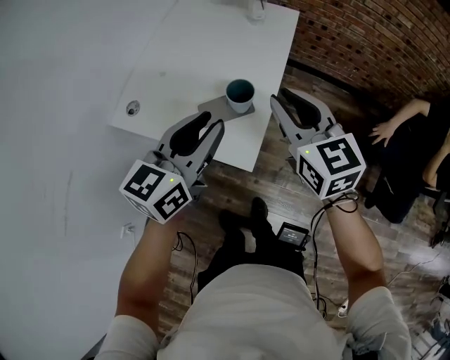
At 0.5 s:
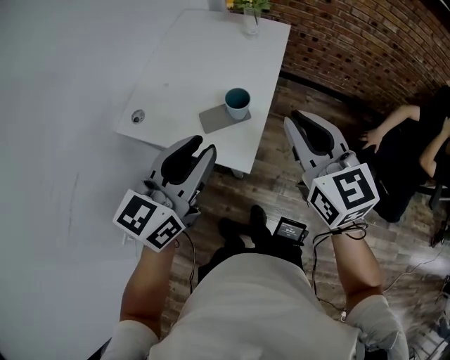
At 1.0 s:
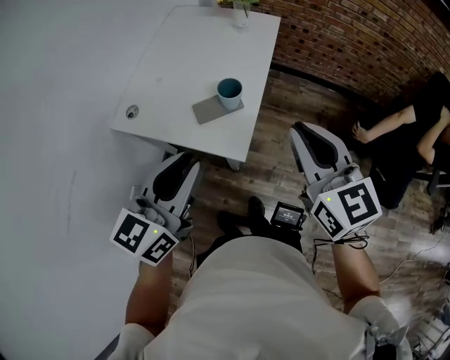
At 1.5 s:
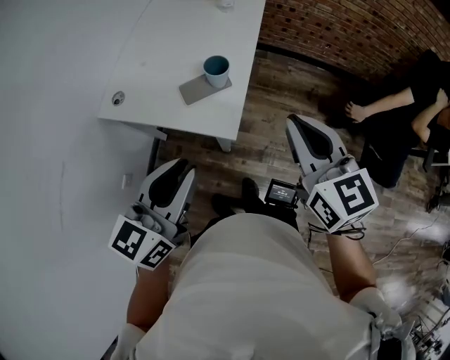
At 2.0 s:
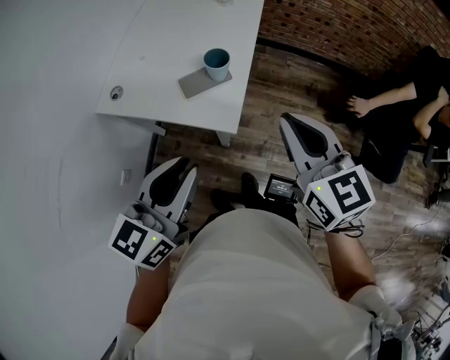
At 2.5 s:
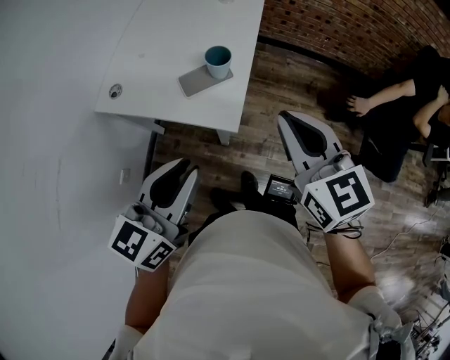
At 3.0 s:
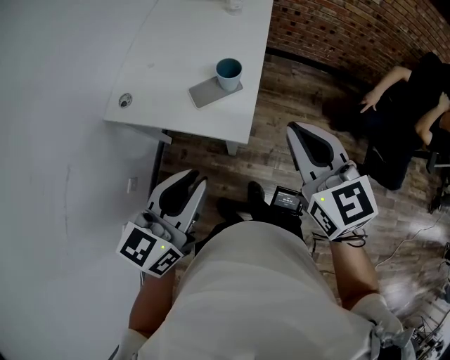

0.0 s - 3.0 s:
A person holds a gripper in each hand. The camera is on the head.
0.0 s - 1.5 s: The grippers both shift backward by some 15 cm.
1.5 s - 3.0 s: The grippers stay close to where they were, moving slightly.

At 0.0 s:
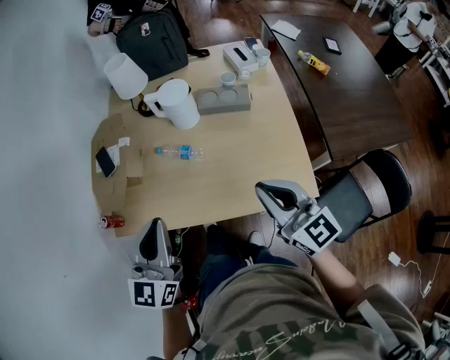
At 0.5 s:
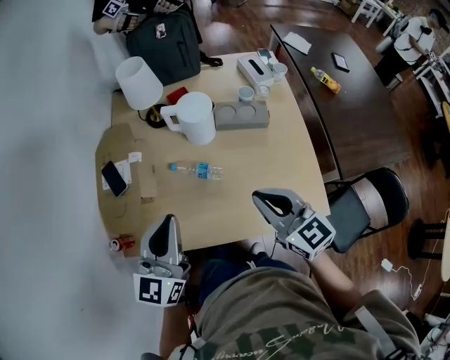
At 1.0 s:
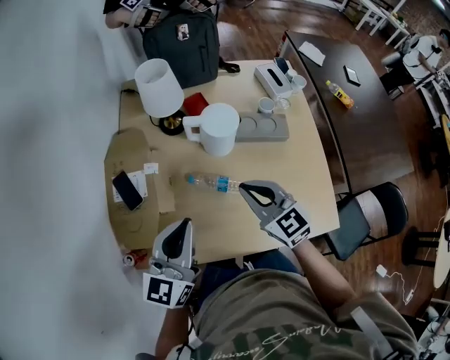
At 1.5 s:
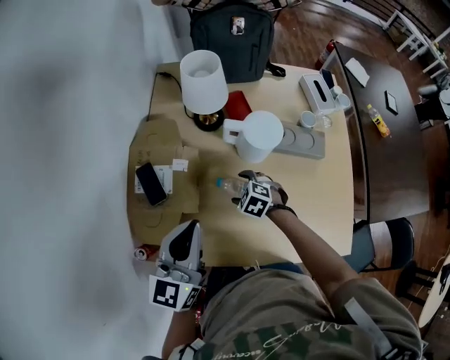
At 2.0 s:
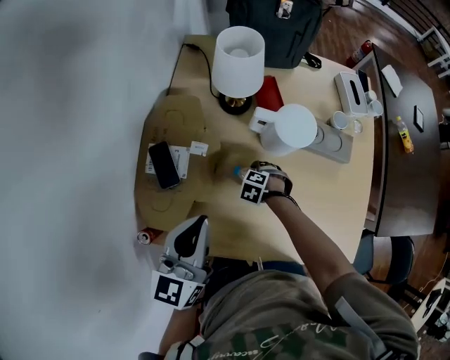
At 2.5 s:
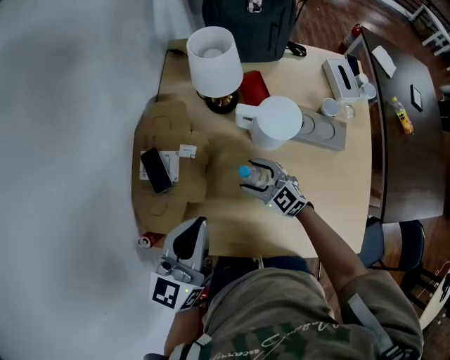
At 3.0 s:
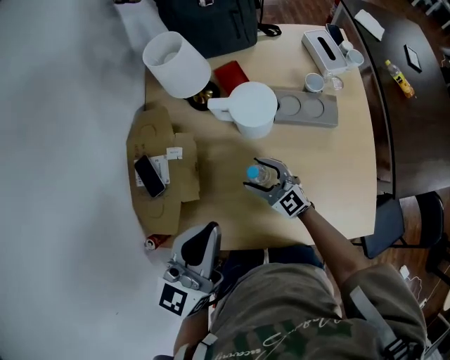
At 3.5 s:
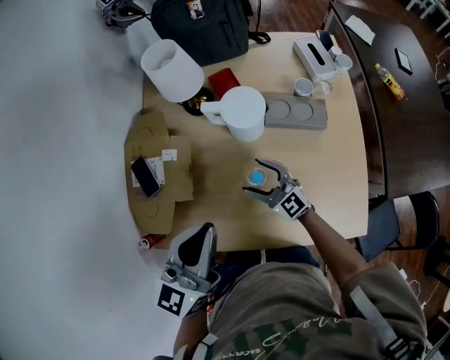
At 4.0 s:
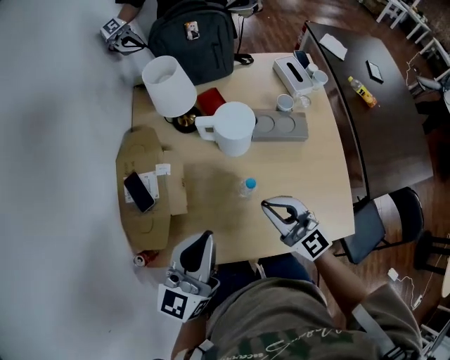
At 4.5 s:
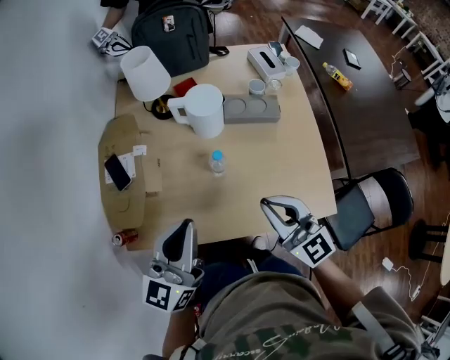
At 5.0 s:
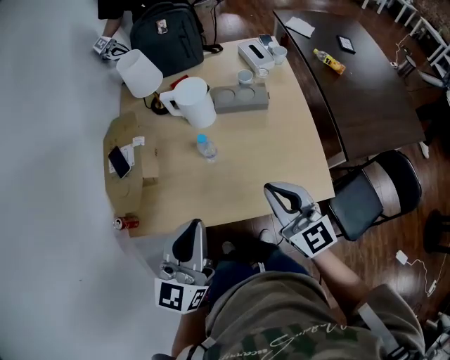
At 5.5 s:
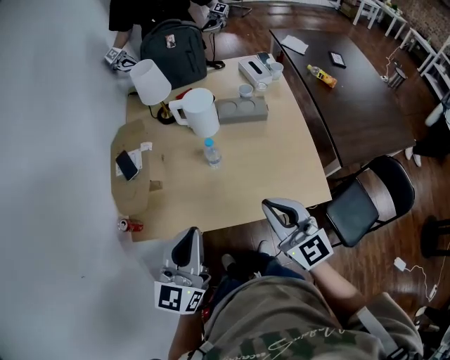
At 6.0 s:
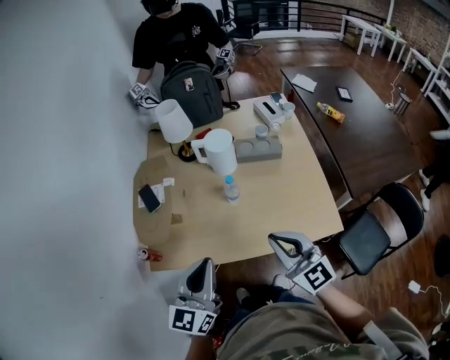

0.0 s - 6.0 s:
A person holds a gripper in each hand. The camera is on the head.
0.0 s - 2.0 s: The left gripper shifts by approximately 30 cm. The right gripper goes roughly 40 cm downward, tilts its fingers roughly 80 degrees downward, and opens up.
2.0 s - 4.0 s: The right gripper shifts approximately 35 cm upward, points its fingers approximately 80 degrees further upward, and closes its fingers. The left gripper moves some 15 cm.
4.0 s - 6.0 s: The left gripper moves backward, about 20 cm. Meanwhile the right gripper goes about 25 cm backward and upward.

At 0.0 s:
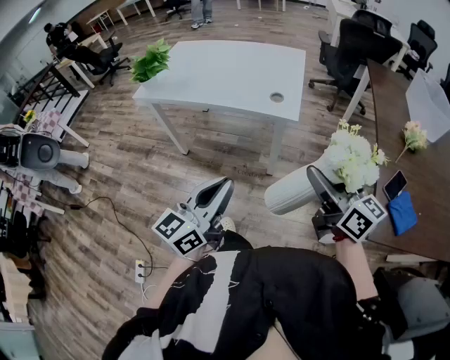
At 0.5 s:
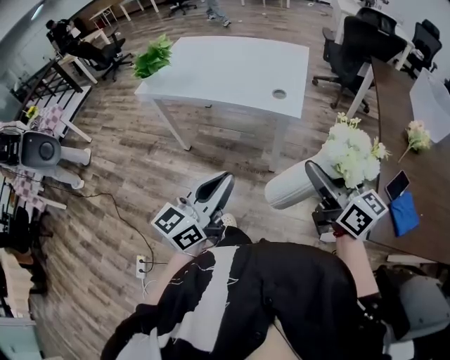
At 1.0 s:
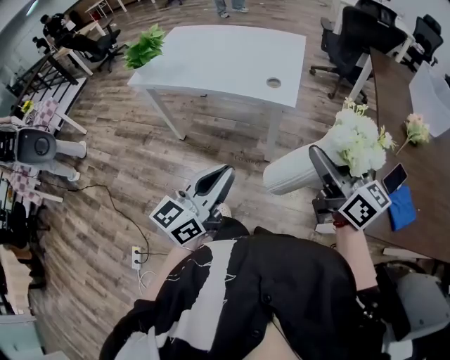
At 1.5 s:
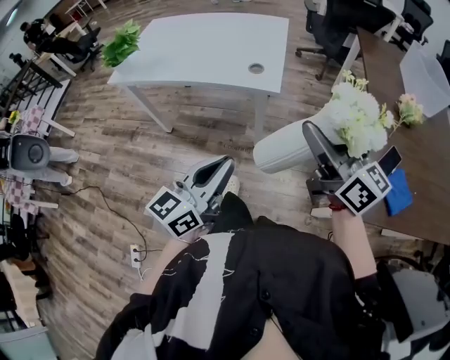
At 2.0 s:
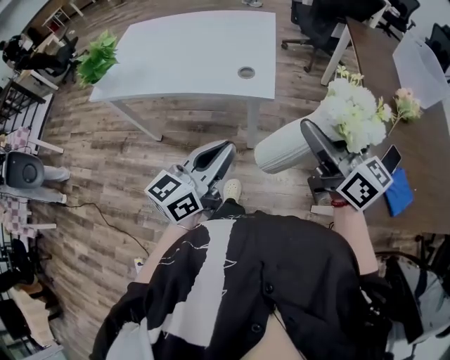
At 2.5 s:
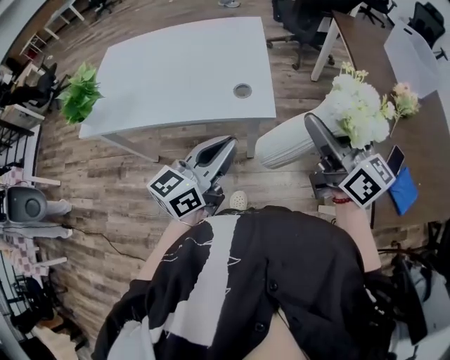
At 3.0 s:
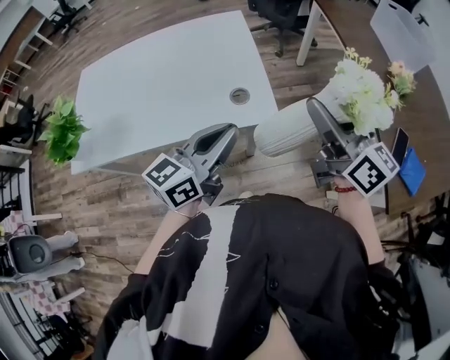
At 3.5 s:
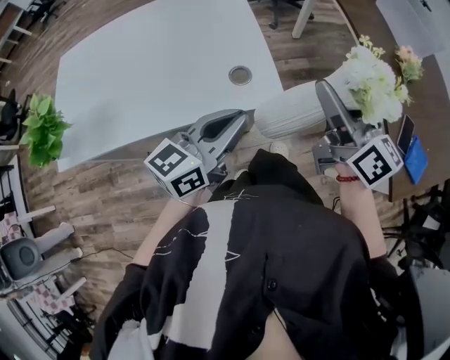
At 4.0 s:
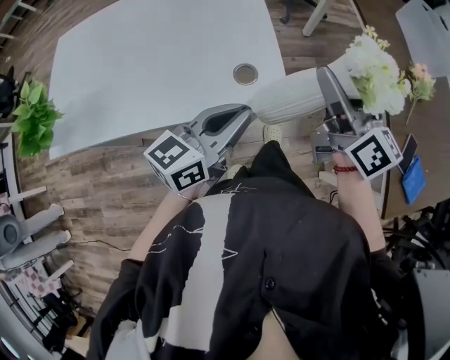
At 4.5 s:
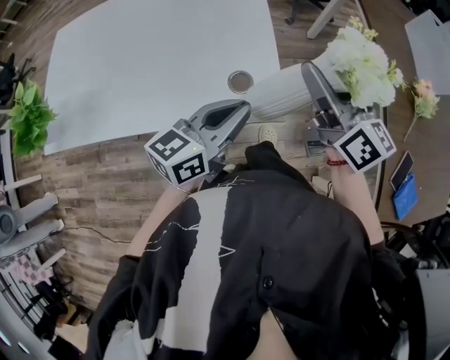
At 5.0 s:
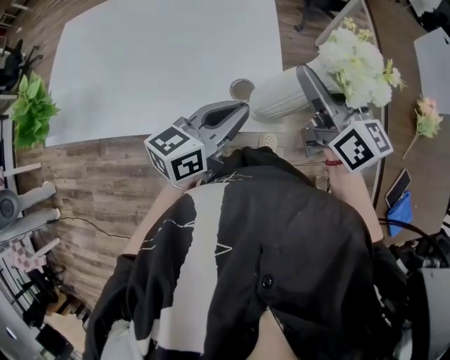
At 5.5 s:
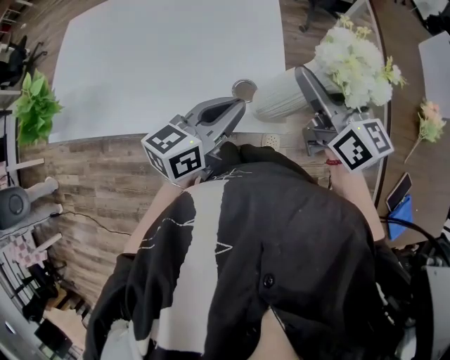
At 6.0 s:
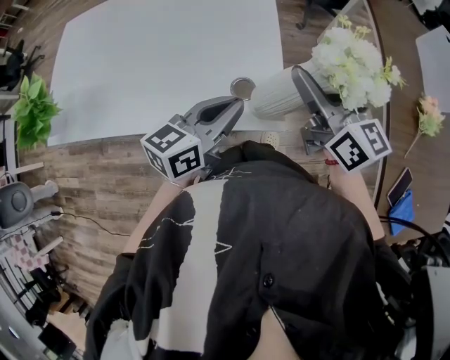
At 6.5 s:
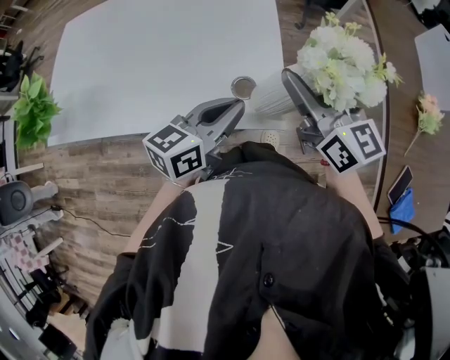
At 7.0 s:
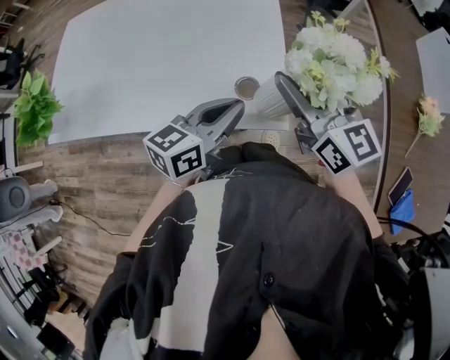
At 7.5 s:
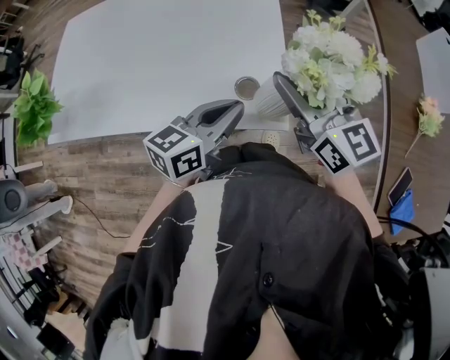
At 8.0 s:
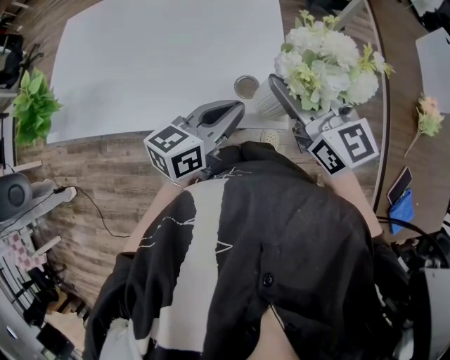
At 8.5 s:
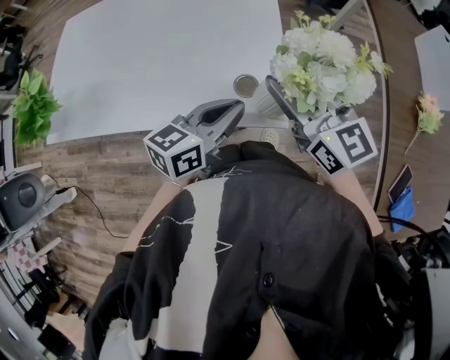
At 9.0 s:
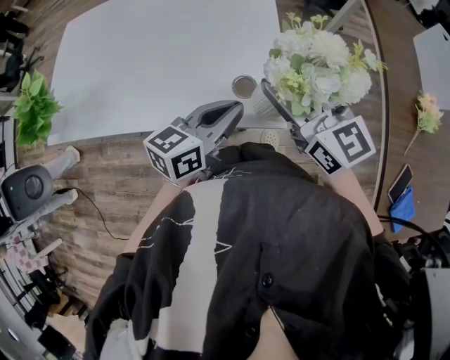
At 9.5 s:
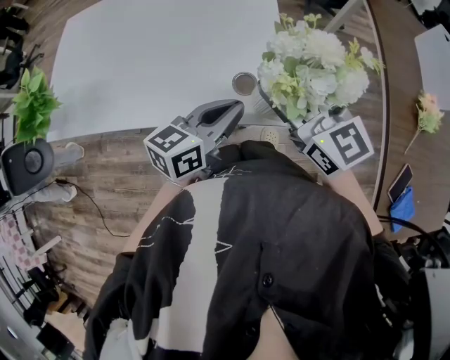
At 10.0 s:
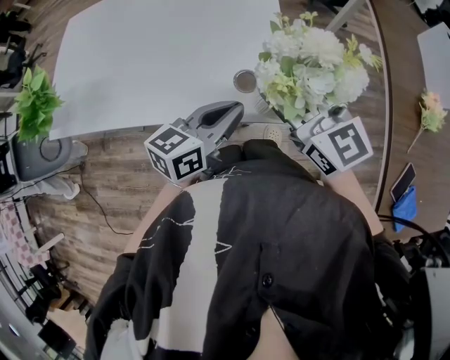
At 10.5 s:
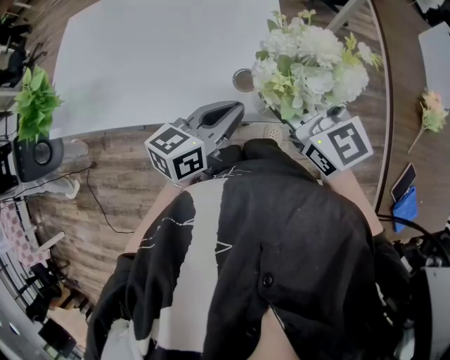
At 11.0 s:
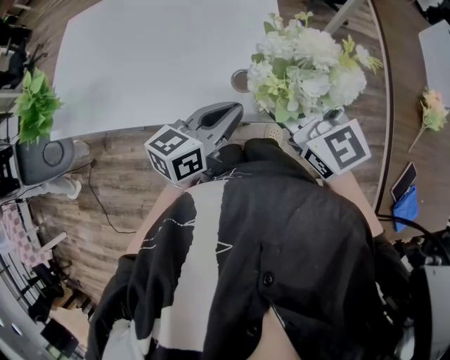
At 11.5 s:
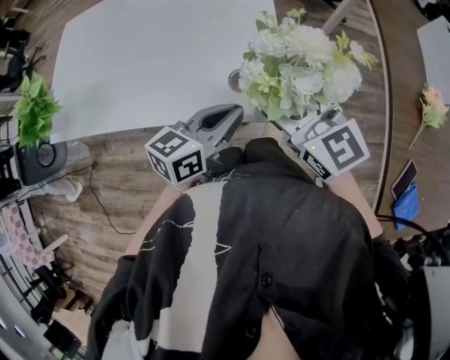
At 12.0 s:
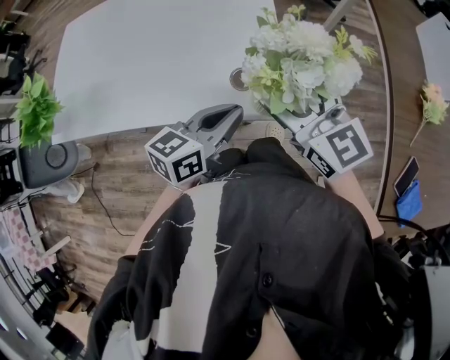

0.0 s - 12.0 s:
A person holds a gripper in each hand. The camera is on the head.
0.0 s - 2.0 s: The right gripper shifts about 10 cm forward. Meanwhile the left gripper heads forward and to the right, covering some 15 cm.
2.0 s - 4.0 s: The right gripper ends up approximately 25 cm from where it was, and turns by about 30 degrees. Meanwhile the left gripper moves approximately 25 cm, and rotates roughly 20 degrees.
4.0 s - 6.0 s: The grippers both shift forward by some 5 cm.
6.0 s - 8.0 s: The right gripper shifts by some 5 cm.
8.0 s - 12.0 s: The grippers move only a little.

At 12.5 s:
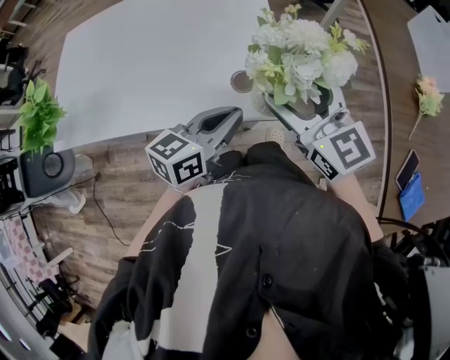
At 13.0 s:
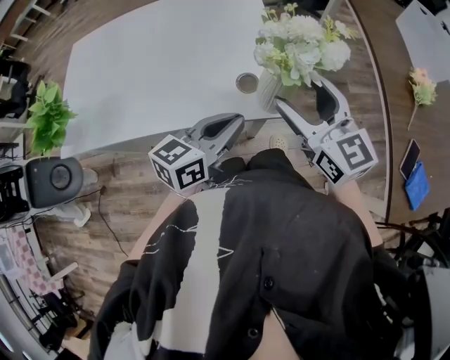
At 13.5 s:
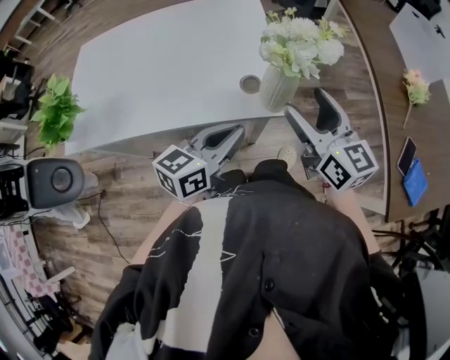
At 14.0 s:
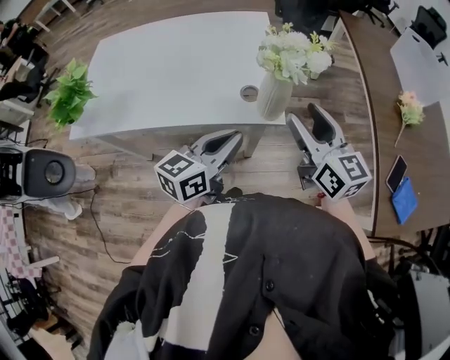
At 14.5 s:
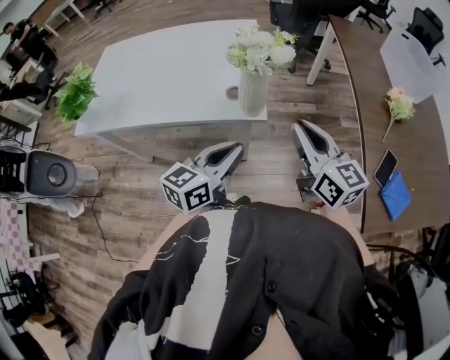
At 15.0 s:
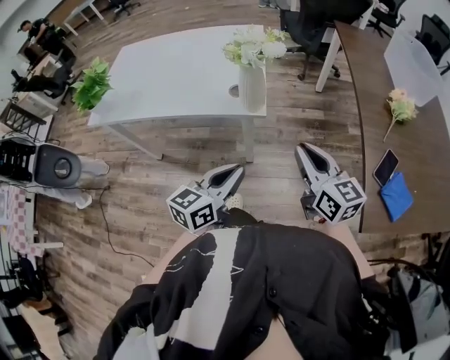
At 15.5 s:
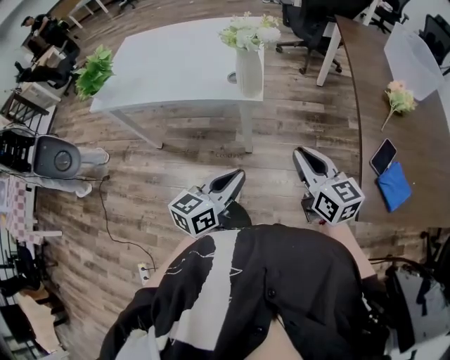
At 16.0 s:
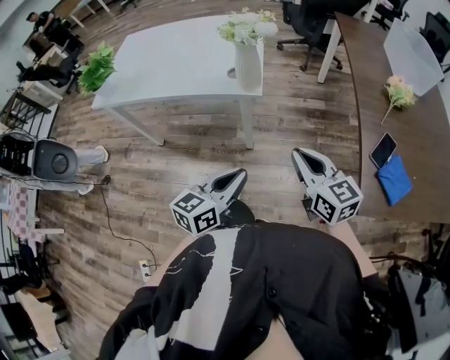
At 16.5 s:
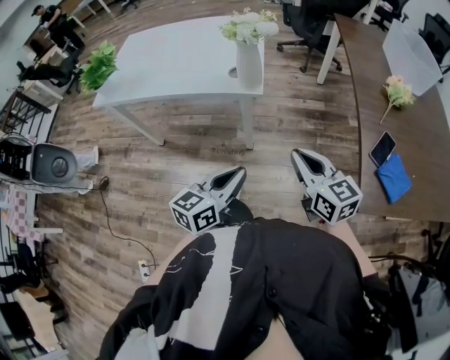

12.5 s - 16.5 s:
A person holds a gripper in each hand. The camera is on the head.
12.5 s - 14.5 s: The grippers both shift backward and to the right by approximately 20 cm. The right gripper closes its fingers.
14.5 s - 16.5 s: The grippers both shift backward by some 15 cm.

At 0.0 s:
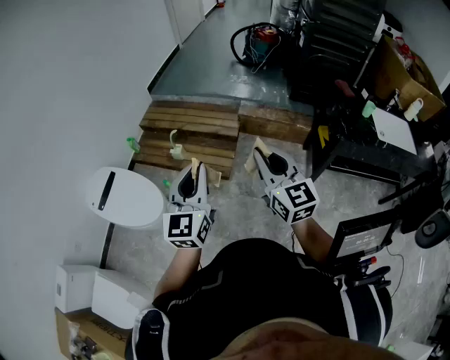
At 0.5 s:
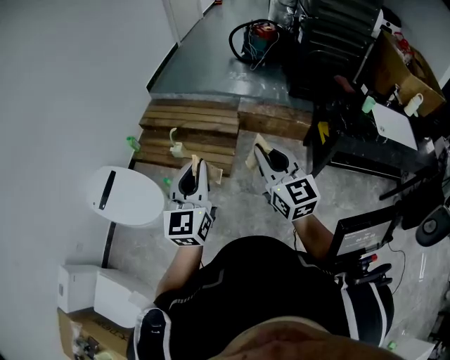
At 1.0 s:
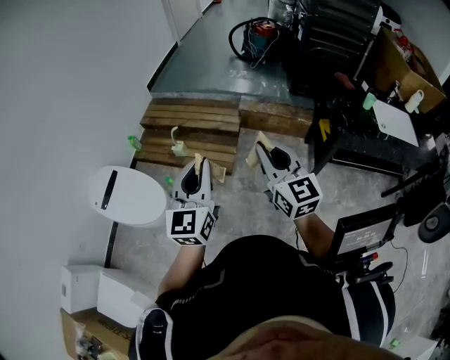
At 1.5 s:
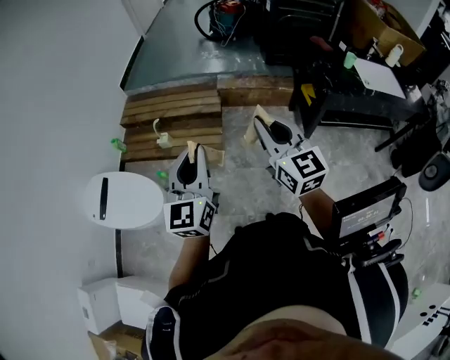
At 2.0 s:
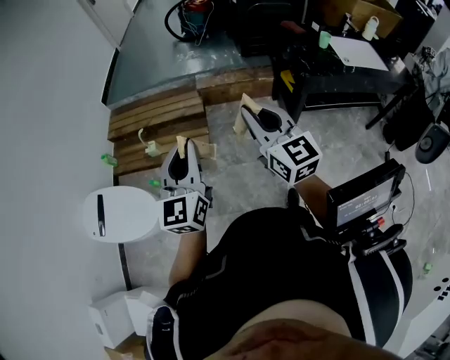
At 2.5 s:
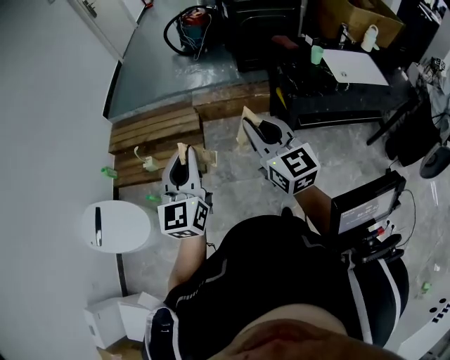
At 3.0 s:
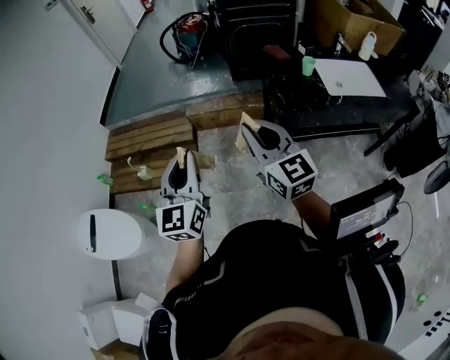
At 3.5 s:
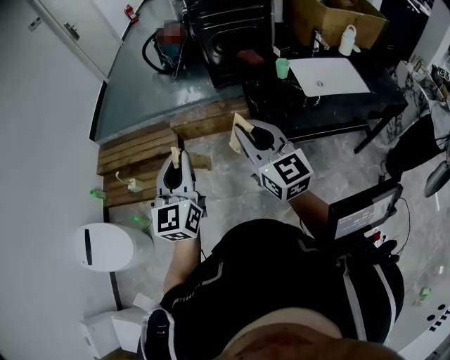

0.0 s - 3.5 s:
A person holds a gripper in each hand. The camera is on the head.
0.0 s - 2.0 s: Both grippers move to the right, roughly 5 cm.
2.0 s - 3.5 s: The grippers both shift to the right by roughly 30 cm.
